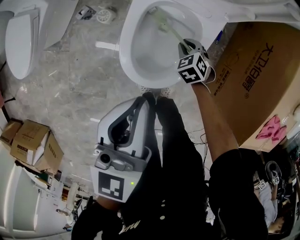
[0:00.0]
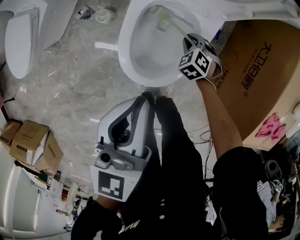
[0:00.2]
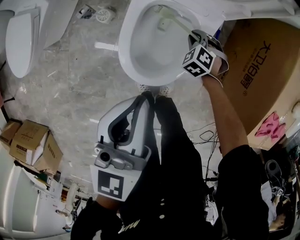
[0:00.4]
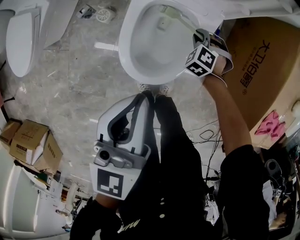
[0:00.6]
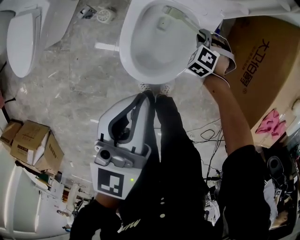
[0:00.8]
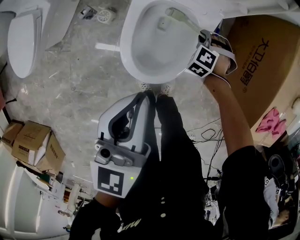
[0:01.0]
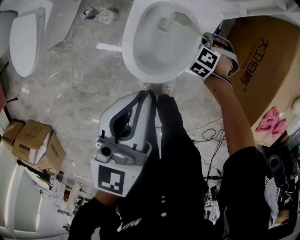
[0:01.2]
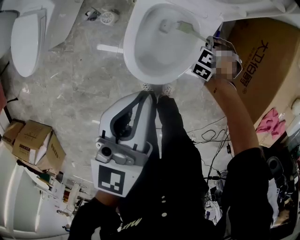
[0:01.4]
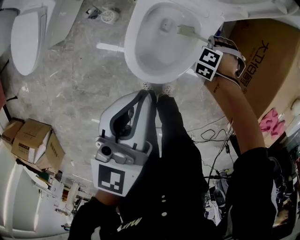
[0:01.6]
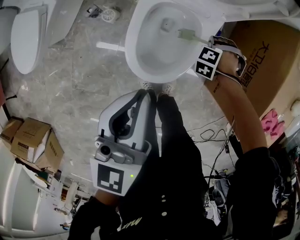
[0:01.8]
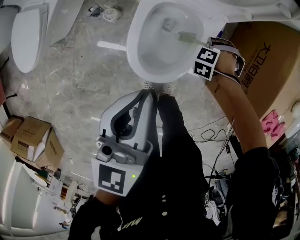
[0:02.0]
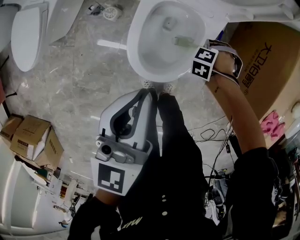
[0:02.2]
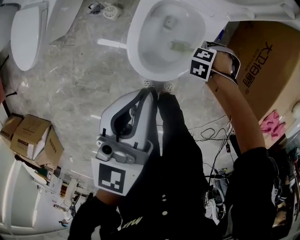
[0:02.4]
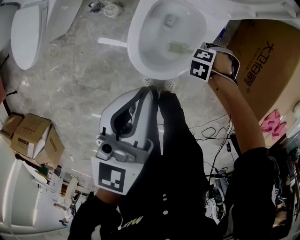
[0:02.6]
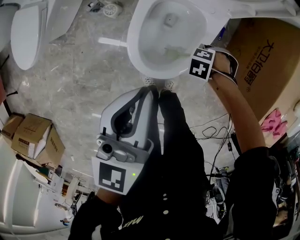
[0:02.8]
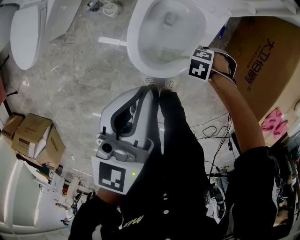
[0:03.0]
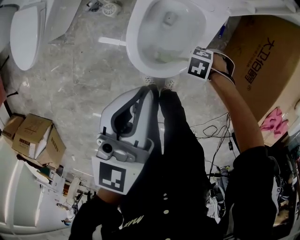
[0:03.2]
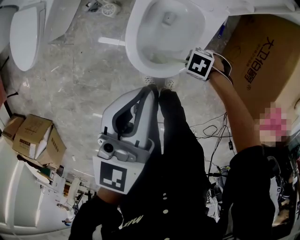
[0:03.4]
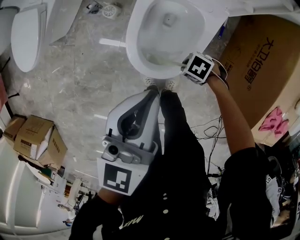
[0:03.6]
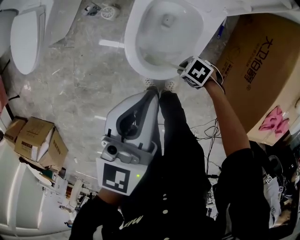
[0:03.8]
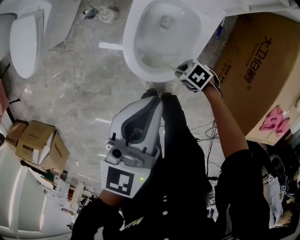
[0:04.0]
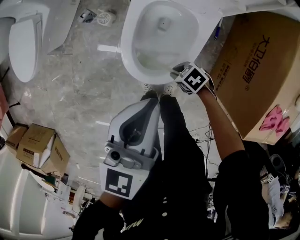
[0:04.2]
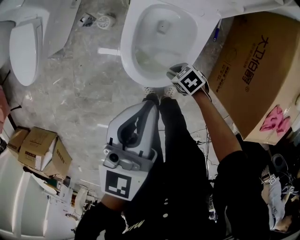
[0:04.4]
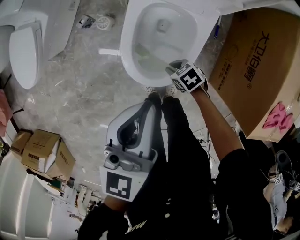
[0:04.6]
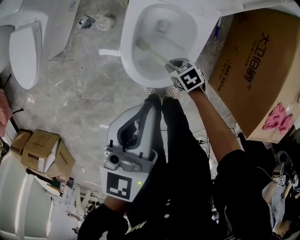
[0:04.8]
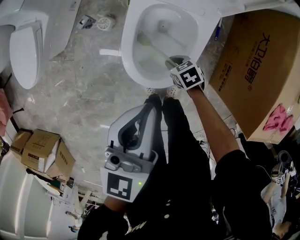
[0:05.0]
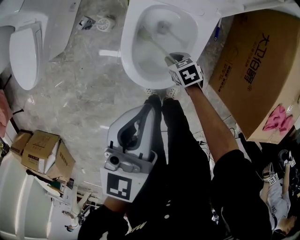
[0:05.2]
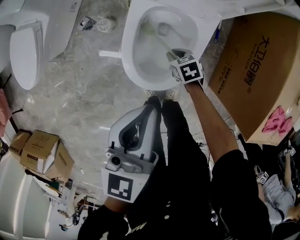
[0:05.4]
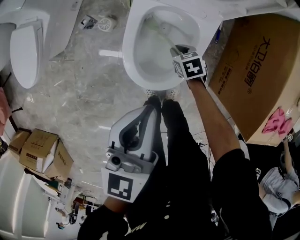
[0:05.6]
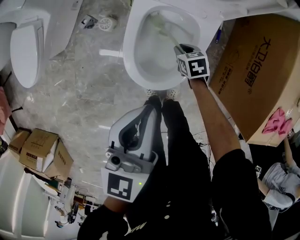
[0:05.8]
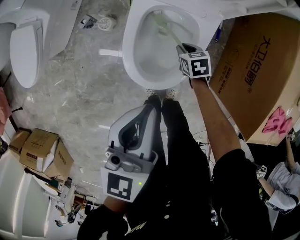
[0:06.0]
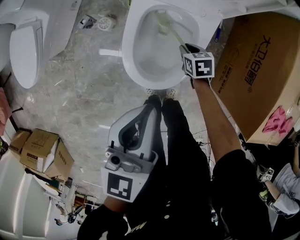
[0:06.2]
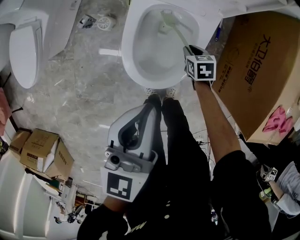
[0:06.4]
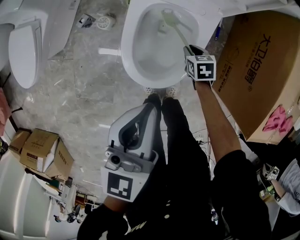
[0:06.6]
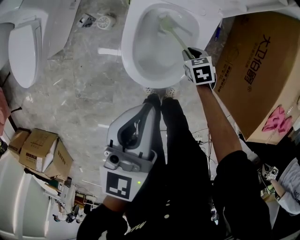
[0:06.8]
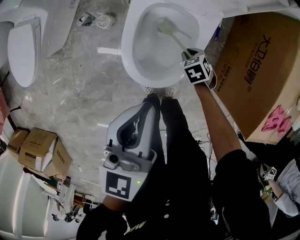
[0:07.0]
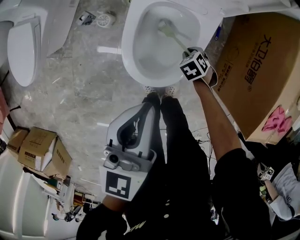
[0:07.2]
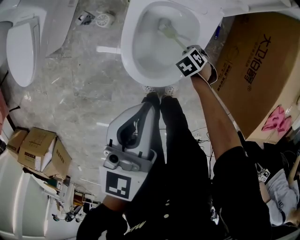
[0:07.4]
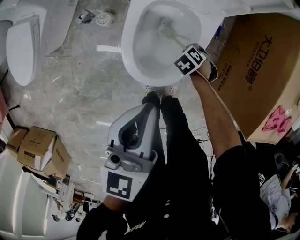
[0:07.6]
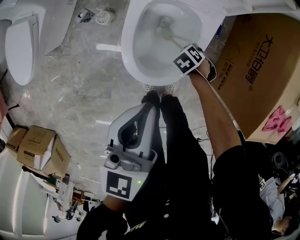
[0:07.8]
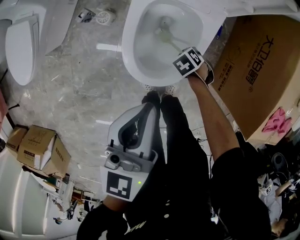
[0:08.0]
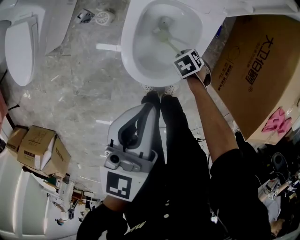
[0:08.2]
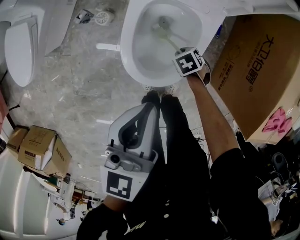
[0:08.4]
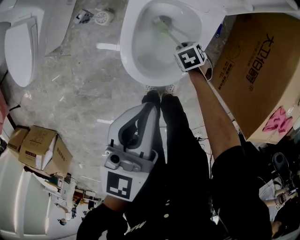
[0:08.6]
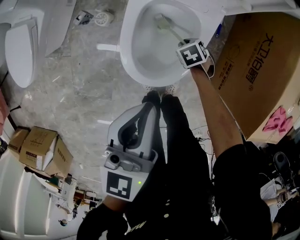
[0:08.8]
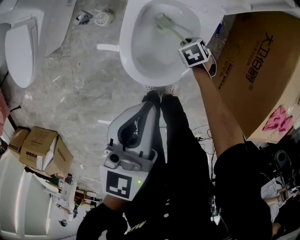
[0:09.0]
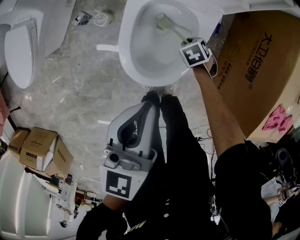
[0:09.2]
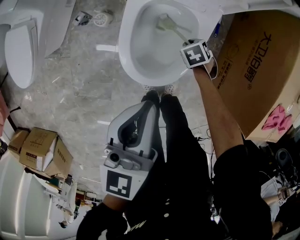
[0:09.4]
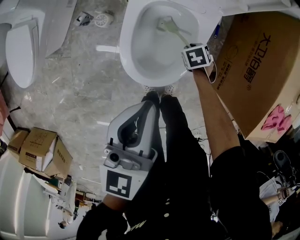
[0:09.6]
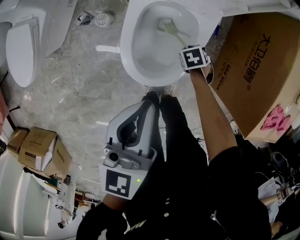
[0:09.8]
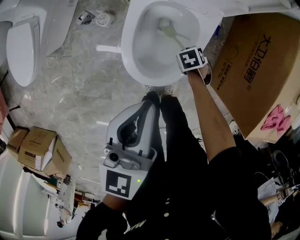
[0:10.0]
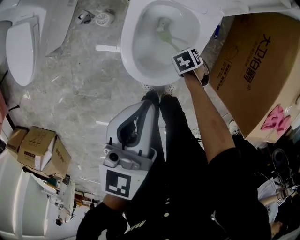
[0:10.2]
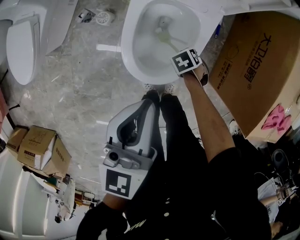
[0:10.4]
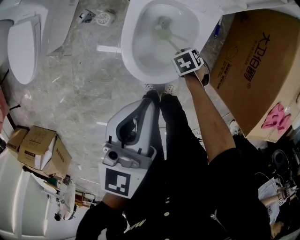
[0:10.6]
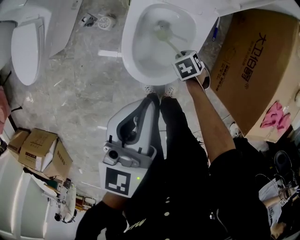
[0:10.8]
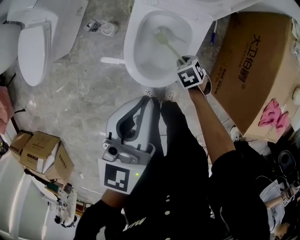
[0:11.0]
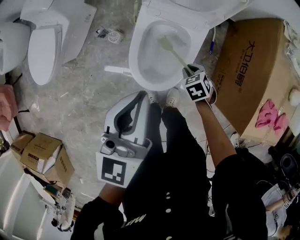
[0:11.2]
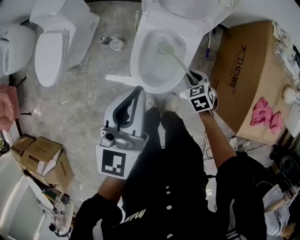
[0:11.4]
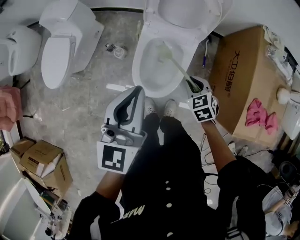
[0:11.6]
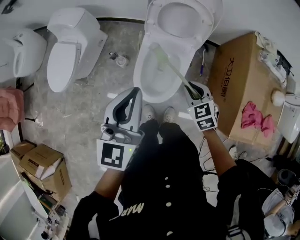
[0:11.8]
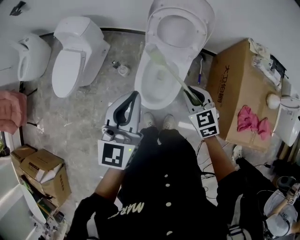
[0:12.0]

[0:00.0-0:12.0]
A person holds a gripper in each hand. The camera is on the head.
0:00.0 to 0:01.6: The right gripper changes place by about 10 cm, and rotates around the line of its fingers by some 50 degrees, counterclockwise from behind.
0:01.6 to 0:03.0: The right gripper changes place by approximately 15 cm, and swivels approximately 30 degrees.
0:03.0 to 0:04.4: The right gripper shifts by about 10 cm, and changes its angle by about 50 degrees.
0:04.4 to 0:06.0: The right gripper ends up roughly 15 cm from where it was, and rotates roughly 30 degrees.
0:06.0 to 0:07.6: The right gripper ends up some 5 cm from where it was, and changes its angle by some 40 degrees.
0:07.6 to 0:09.0: The right gripper rotates roughly 20 degrees.
0:09.0 to 0:10.4: The right gripper moves some 5 cm.
0:10.4 to 0:12.0: The right gripper goes some 50 cm upward, and angles its fingers upward, by roughly 40 degrees, while the left gripper goes roughly 30 cm upward, and changes its angle by roughly 20 degrees.

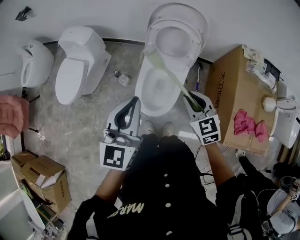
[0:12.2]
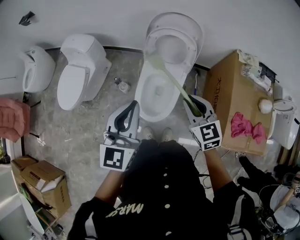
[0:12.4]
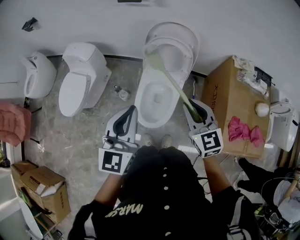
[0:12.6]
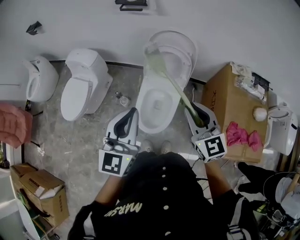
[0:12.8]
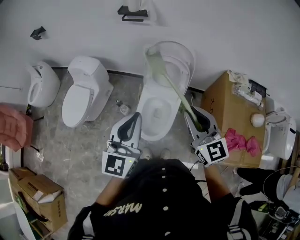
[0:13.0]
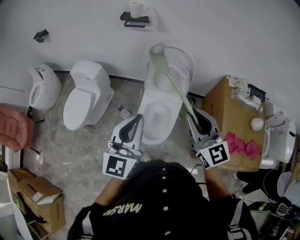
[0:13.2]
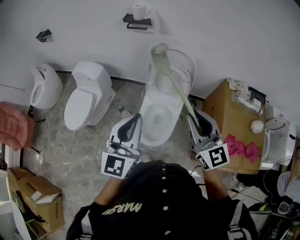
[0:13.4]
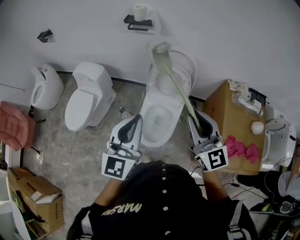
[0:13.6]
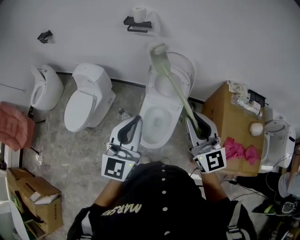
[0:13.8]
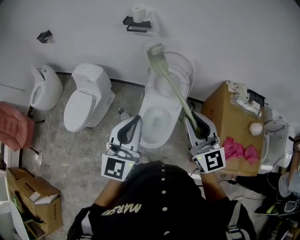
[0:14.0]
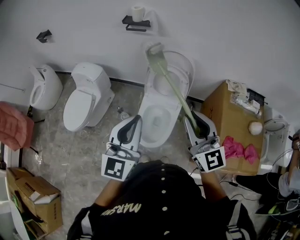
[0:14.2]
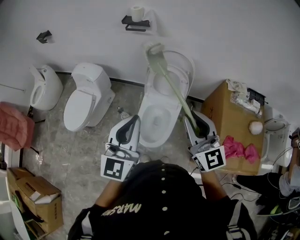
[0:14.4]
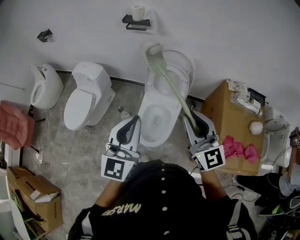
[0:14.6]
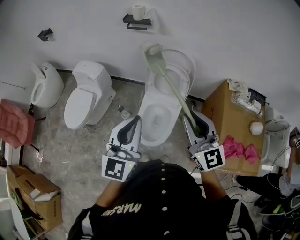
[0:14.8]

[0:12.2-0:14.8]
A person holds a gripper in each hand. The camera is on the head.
0:12.2 to 0:13.4: The right gripper heads upward, covering some 25 cm, and tips its fingers upward by about 30 degrees; the left gripper goes roughly 10 cm upward.
0:13.4 to 0:14.8: The grippers stay close to where they were, moving slightly.

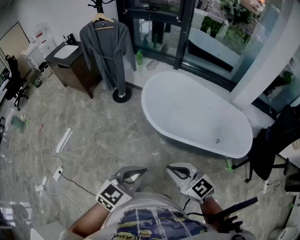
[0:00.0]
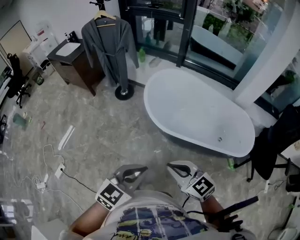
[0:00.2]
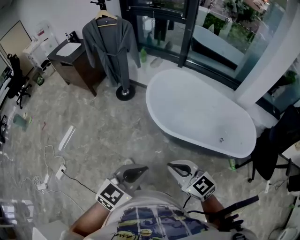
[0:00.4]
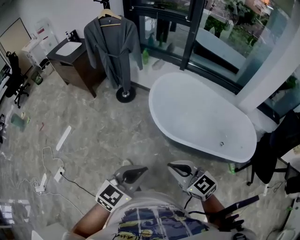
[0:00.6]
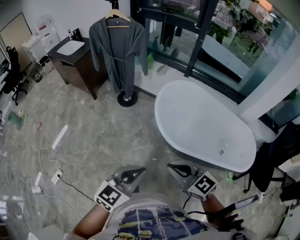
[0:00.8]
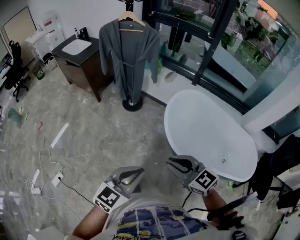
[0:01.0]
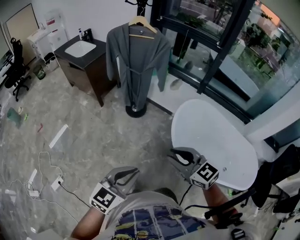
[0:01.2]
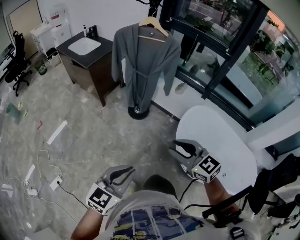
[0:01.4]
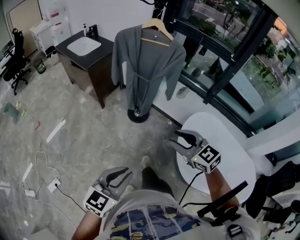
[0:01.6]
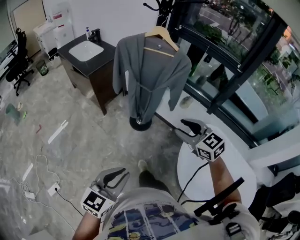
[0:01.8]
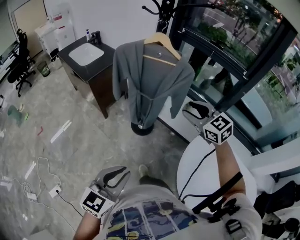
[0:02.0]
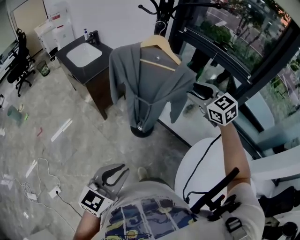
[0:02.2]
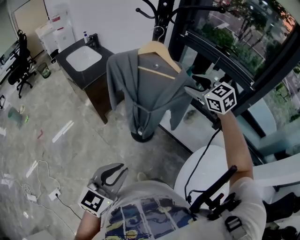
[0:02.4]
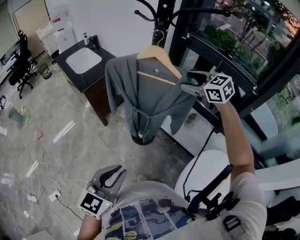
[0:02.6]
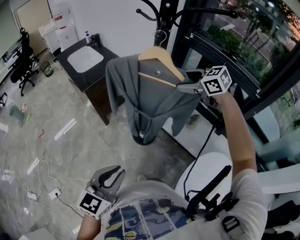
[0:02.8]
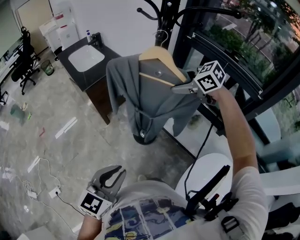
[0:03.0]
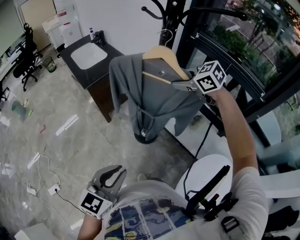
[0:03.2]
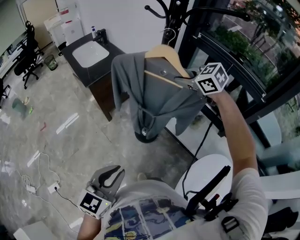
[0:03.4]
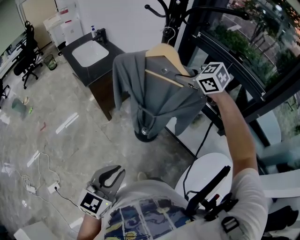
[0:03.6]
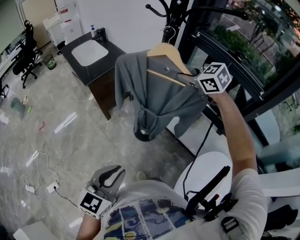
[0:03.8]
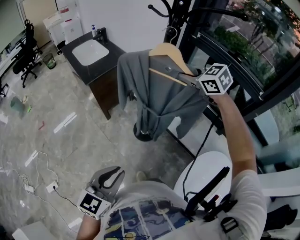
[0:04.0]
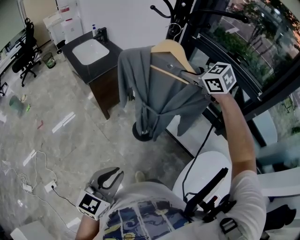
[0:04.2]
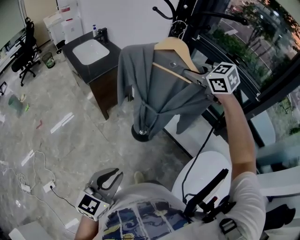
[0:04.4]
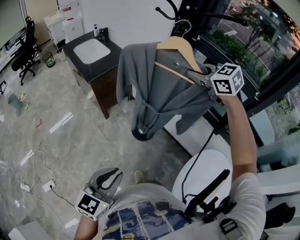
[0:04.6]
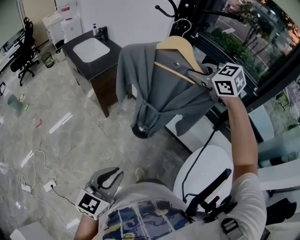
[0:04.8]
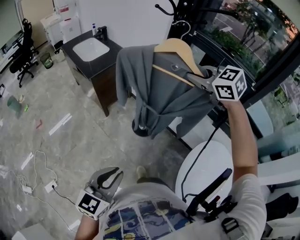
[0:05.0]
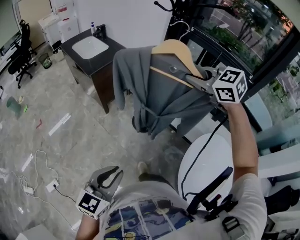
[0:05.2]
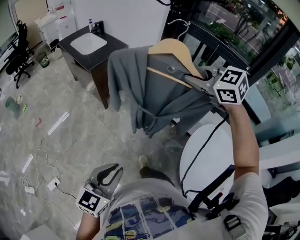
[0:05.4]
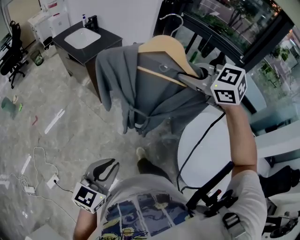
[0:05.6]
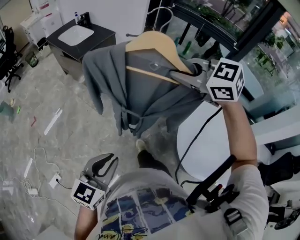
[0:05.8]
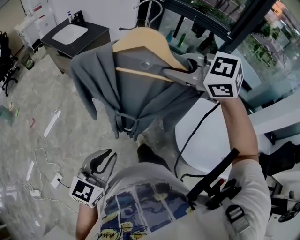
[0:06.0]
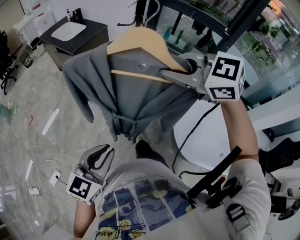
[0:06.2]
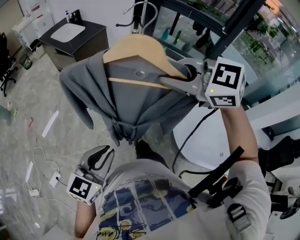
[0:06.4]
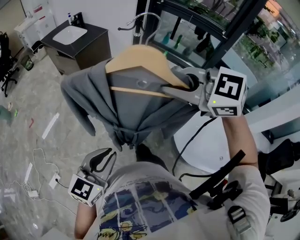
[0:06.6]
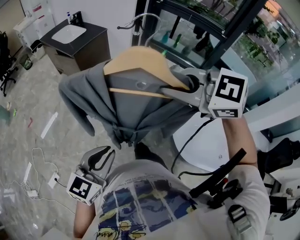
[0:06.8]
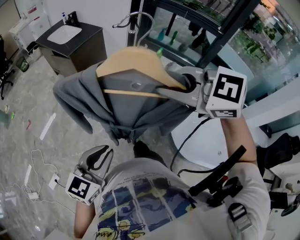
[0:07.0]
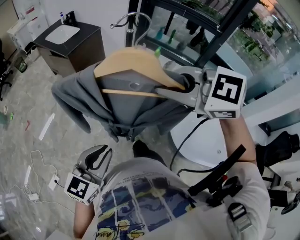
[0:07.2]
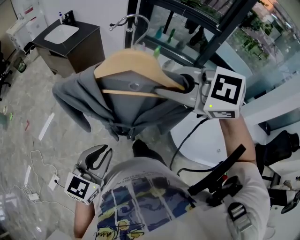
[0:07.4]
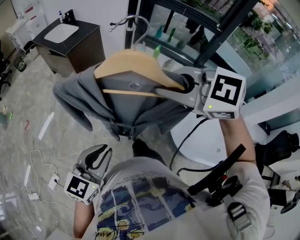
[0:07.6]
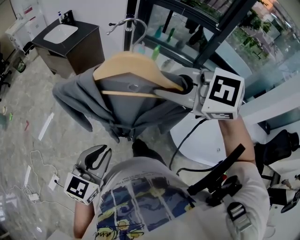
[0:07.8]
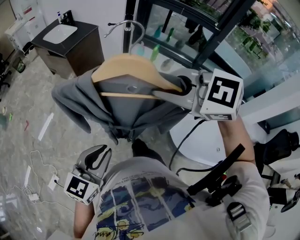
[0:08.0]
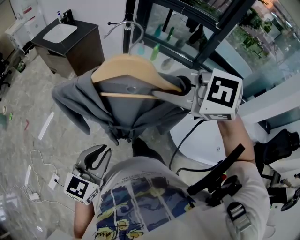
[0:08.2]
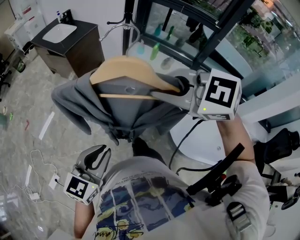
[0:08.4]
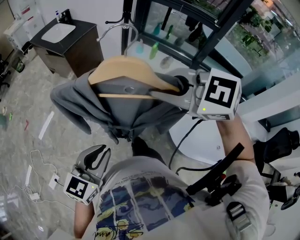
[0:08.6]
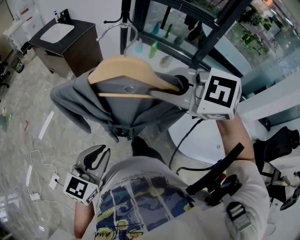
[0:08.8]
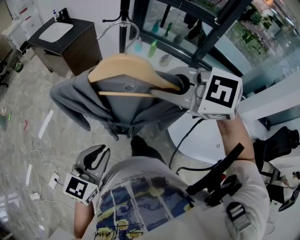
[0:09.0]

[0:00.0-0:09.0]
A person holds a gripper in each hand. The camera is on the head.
0:00.0 to 0:01.6: Both grippers are carried forward and to the left, about 50 cm. The right gripper opens up. The left gripper swivels some 20 degrees.
0:01.6 to 0:03.0: The left gripper moves forward, approximately 30 cm, while the right gripper shifts about 50 cm forward, swivels some 30 degrees, and opens up.
0:03.0 to 0:04.4: The left gripper changes place by about 5 cm. The right gripper goes some 5 cm upward, and closes.
0:04.4 to 0:06.0: The left gripper goes roughly 20 cm backward and to the left; the right gripper goes about 35 cm backward.
0:06.0 to 0:07.6: The right gripper shifts about 10 cm backward.
0:07.6 to 0:09.0: The grippers make only small movements.
